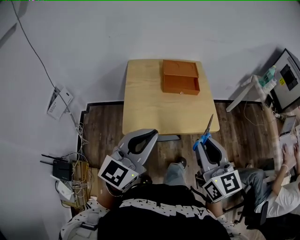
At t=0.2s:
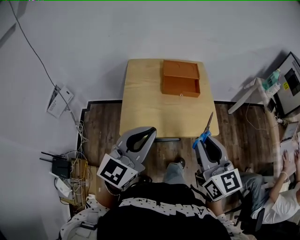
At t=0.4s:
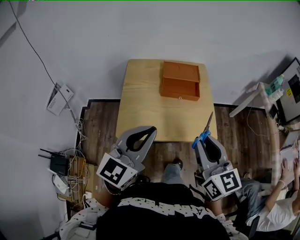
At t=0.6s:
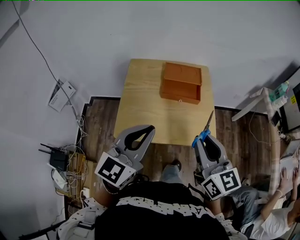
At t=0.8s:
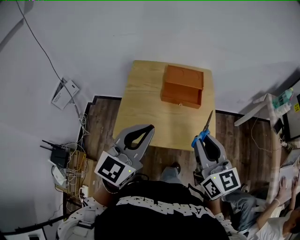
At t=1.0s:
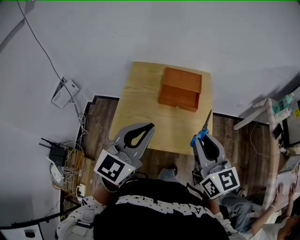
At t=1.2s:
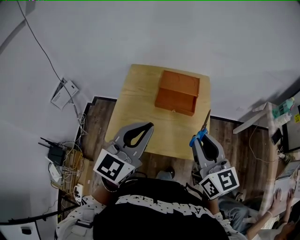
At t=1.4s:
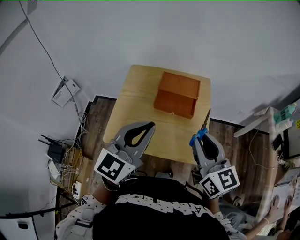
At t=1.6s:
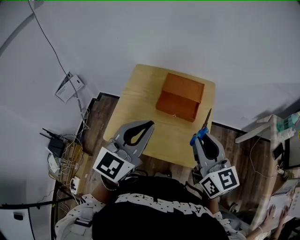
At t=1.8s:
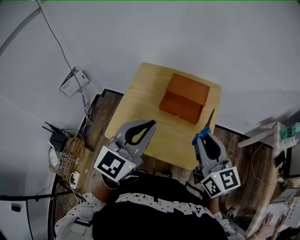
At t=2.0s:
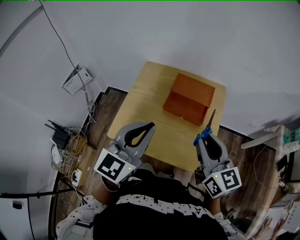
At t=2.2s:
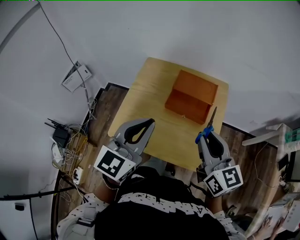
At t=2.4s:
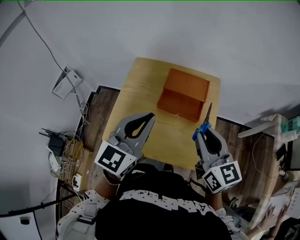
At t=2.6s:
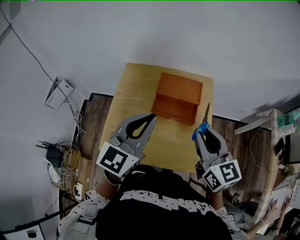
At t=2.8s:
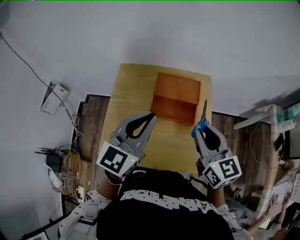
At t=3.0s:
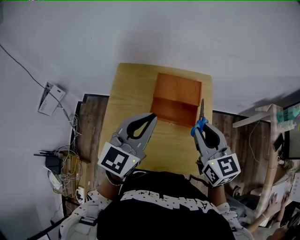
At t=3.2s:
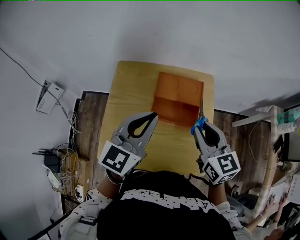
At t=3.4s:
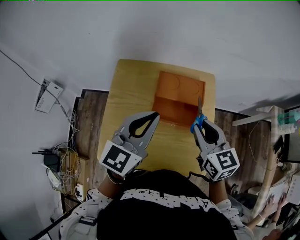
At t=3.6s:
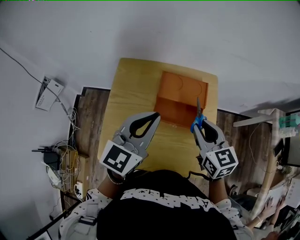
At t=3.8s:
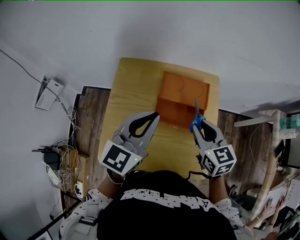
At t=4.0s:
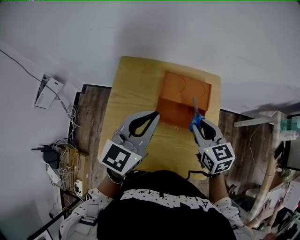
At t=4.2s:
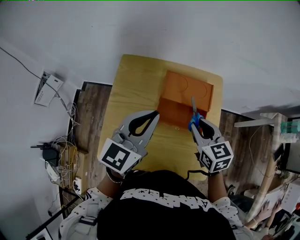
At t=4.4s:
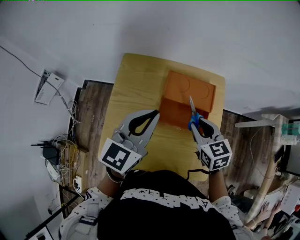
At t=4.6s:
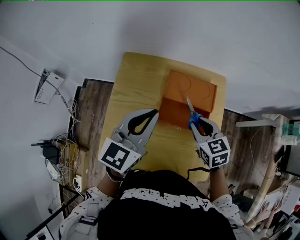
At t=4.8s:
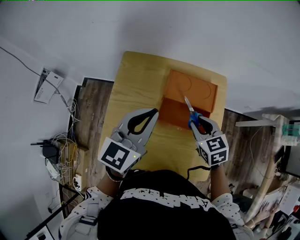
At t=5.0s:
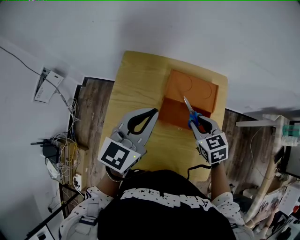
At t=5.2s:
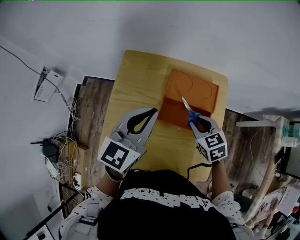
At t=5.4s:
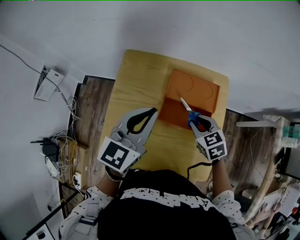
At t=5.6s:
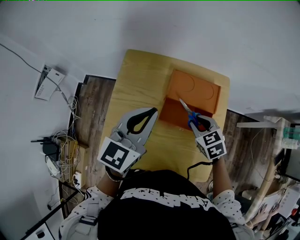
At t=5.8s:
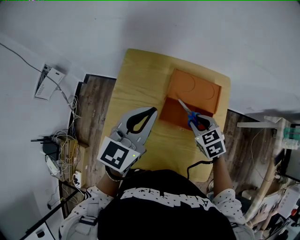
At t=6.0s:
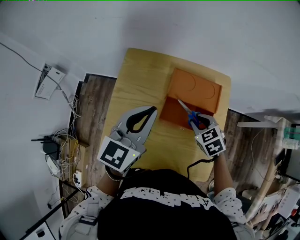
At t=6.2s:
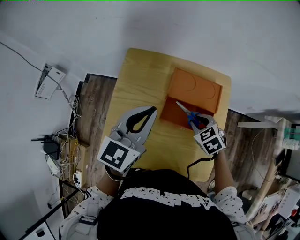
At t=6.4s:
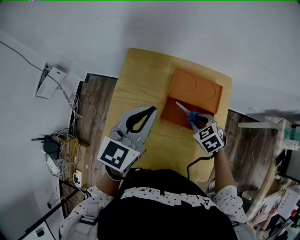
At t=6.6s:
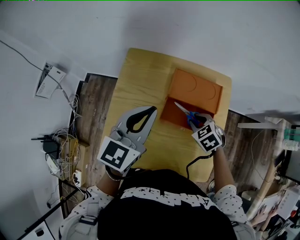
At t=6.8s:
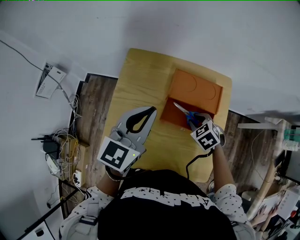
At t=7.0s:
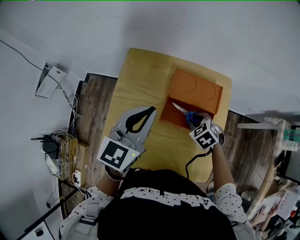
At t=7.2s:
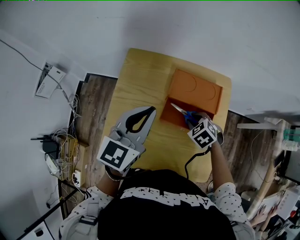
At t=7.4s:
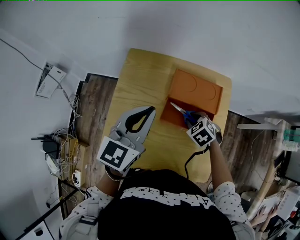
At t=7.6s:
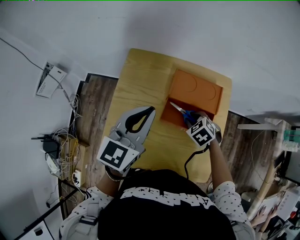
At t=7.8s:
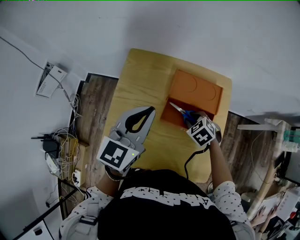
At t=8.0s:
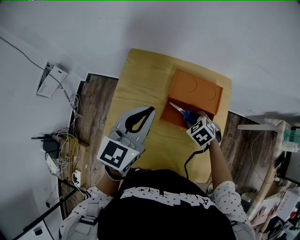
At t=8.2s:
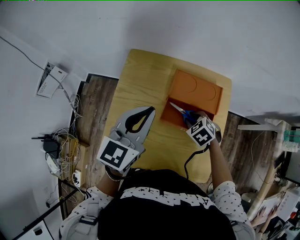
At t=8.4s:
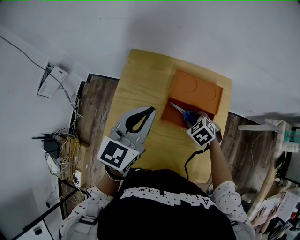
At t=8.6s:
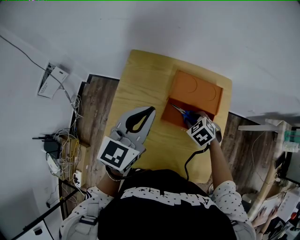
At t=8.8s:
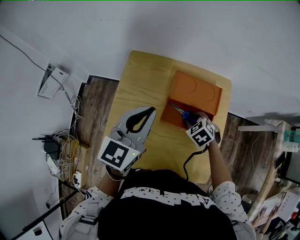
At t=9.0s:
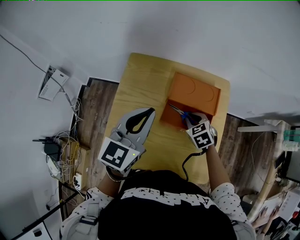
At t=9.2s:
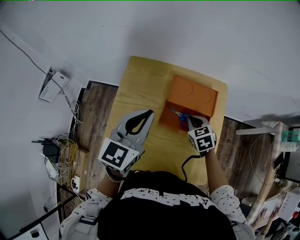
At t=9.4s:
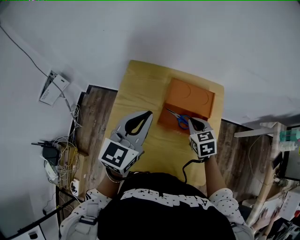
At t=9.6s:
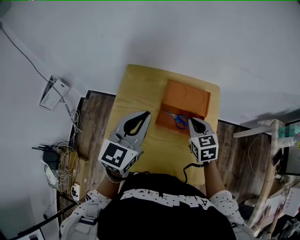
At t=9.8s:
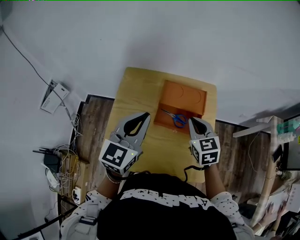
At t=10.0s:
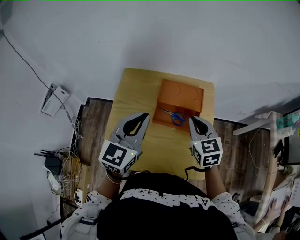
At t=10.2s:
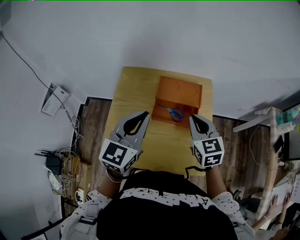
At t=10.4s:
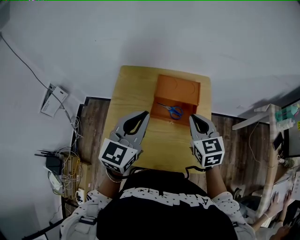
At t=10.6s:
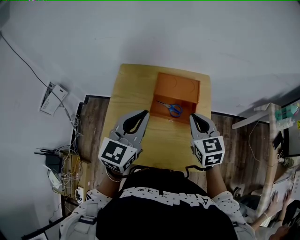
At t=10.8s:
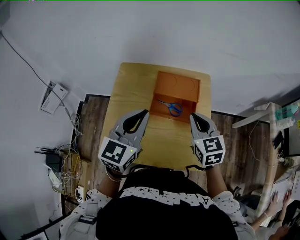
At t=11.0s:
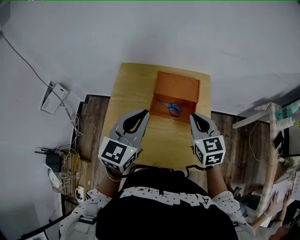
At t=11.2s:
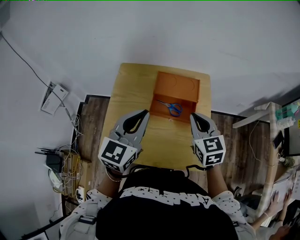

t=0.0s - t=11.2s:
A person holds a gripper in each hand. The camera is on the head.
t=0.0s - t=1.6s: Both grippers travel together forward and to the right, some 20 cm. The right gripper swivels roughly 20 degrees; the left gripper turns by approximately 20 degrees.
t=1.6s - t=3.2s: The left gripper goes some 15 cm forward. Meanwhile the right gripper moves forward and downward, some 15 cm.
t=3.2s - t=4.8s: The right gripper heads downward and forward, covering some 15 cm, and changes its angle by roughly 30 degrees; the left gripper goes about 5 cm forward.
t=4.8s - t=6.4s: The right gripper moves downward, roughly 10 cm, and rotates roughly 30 degrees.
t=6.4s - t=8.0s: There are only small adjustments of the grippers.
t=8.0s - t=9.6s: The right gripper heads upward, covering roughly 10 cm, points its fingers some 30 degrees further upward, and closes up.
t=9.6s - t=11.2s: The right gripper shifts about 10 cm upward and backward, while the left gripper goes approximately 5 cm backward.

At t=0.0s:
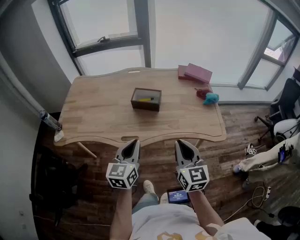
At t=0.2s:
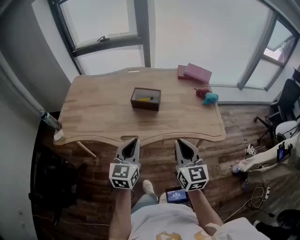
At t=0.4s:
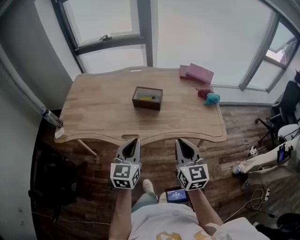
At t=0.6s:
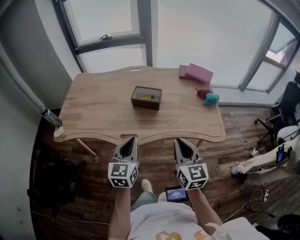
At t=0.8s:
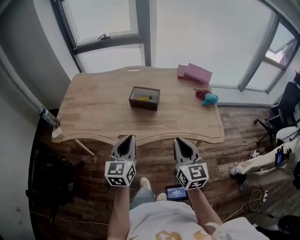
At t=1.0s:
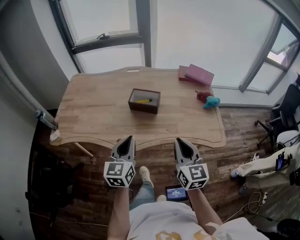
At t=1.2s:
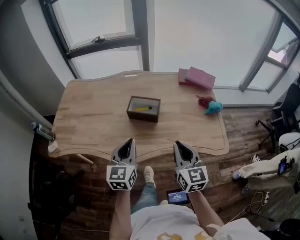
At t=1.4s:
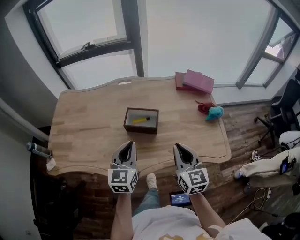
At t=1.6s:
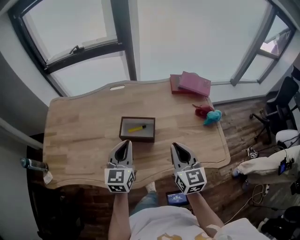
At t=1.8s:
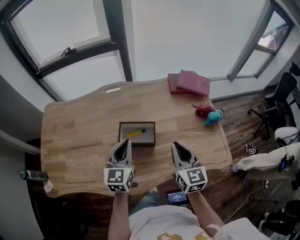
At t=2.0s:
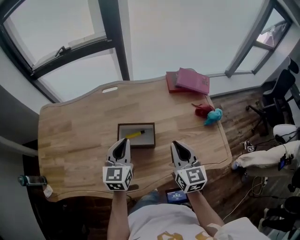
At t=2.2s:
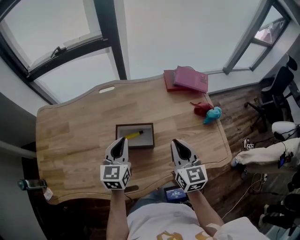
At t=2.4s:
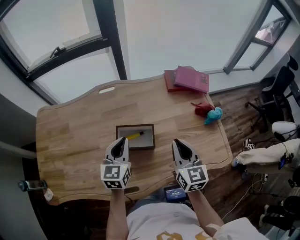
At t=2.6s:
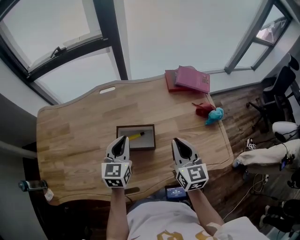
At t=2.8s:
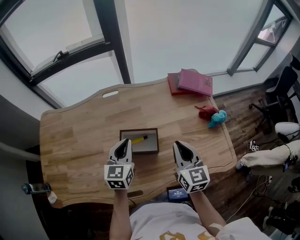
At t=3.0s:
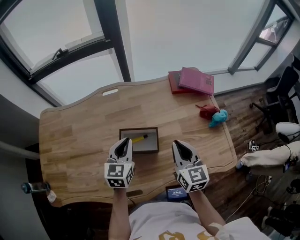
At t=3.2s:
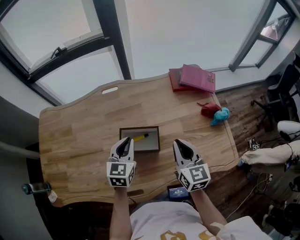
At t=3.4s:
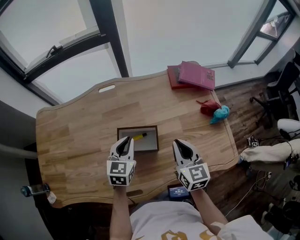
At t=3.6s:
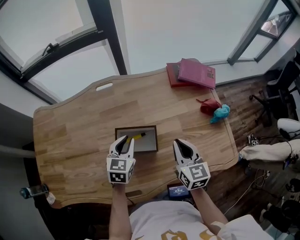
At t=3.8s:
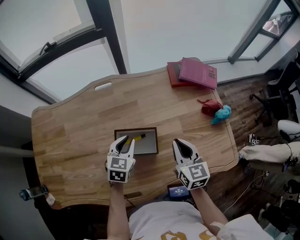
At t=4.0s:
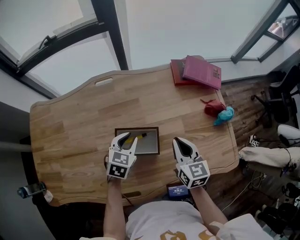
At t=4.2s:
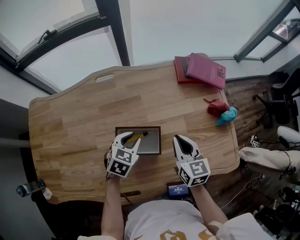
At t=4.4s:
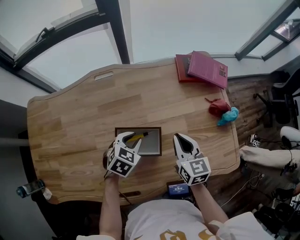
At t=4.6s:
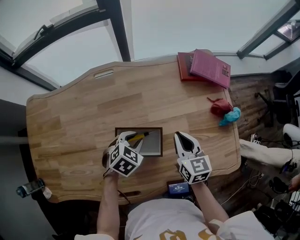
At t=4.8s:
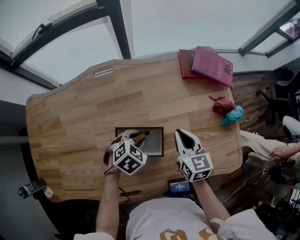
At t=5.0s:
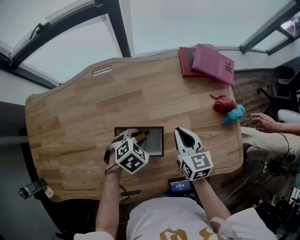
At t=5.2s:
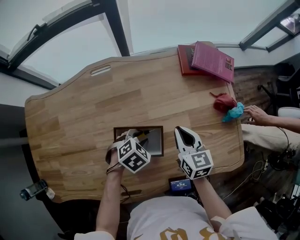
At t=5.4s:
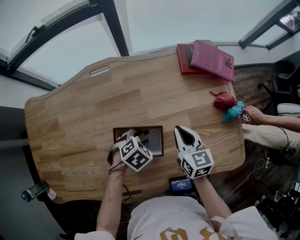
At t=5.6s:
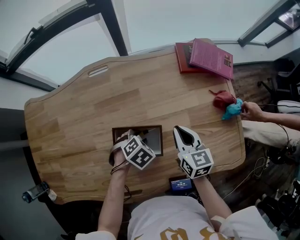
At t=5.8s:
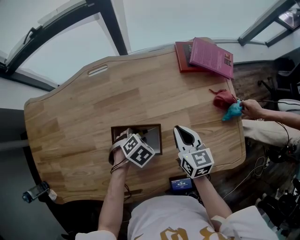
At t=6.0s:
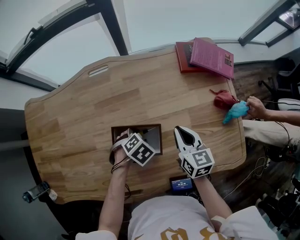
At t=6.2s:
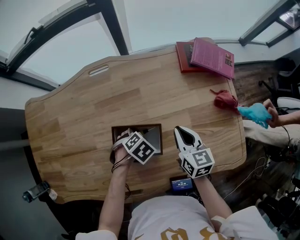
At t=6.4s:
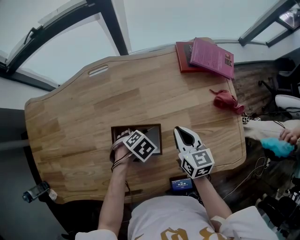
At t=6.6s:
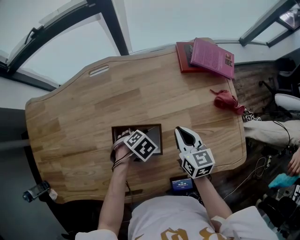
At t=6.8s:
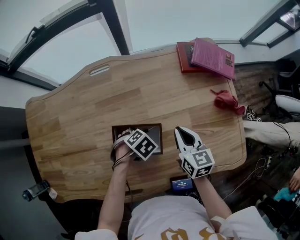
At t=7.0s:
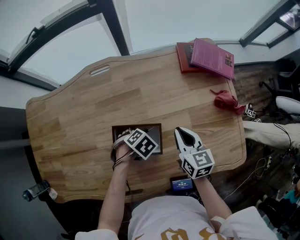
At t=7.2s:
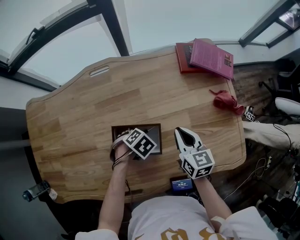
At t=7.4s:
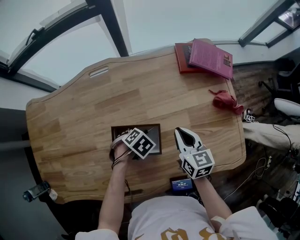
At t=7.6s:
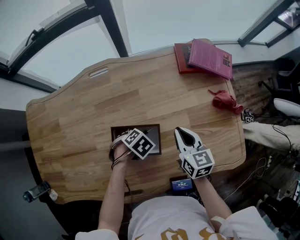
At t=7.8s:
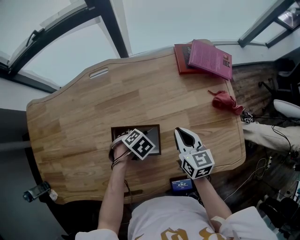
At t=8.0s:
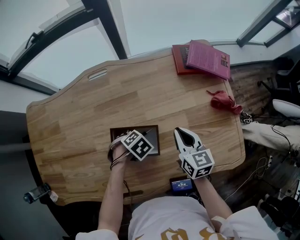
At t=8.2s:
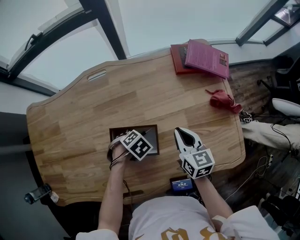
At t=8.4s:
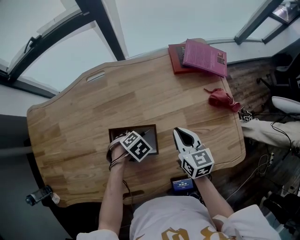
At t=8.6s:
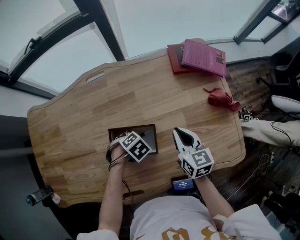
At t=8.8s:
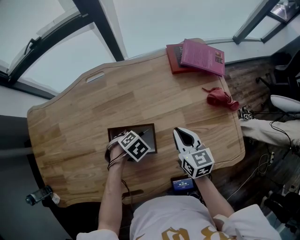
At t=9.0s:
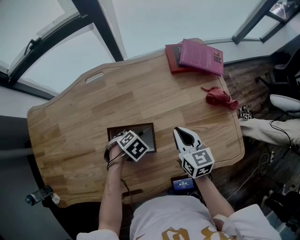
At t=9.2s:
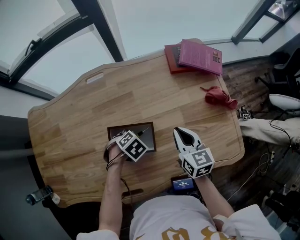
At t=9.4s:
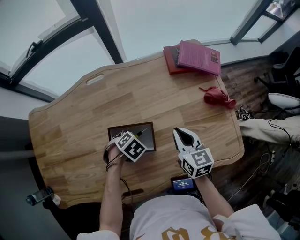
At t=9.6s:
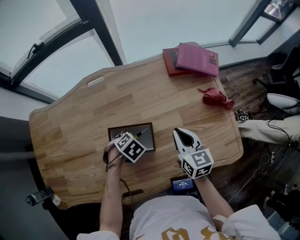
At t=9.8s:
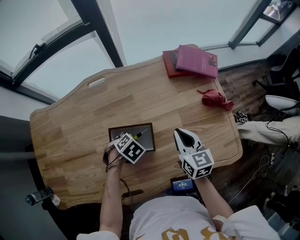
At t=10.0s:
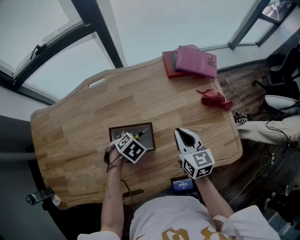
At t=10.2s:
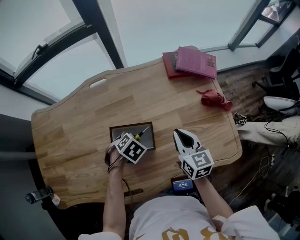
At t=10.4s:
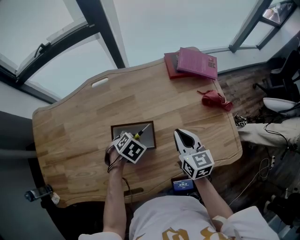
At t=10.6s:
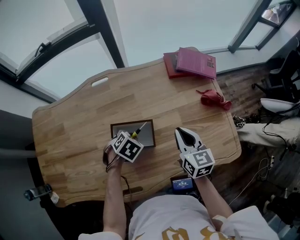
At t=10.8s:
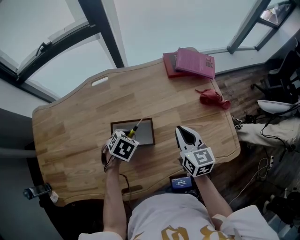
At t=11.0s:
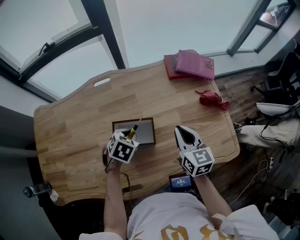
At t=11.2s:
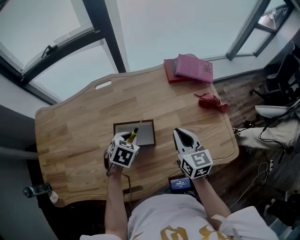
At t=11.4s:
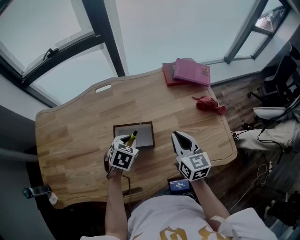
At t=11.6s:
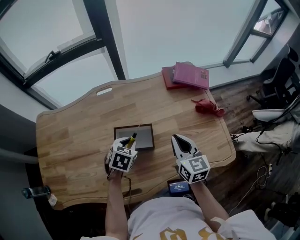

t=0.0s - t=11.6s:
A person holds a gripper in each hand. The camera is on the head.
t=0.0s - t=1.4s: The grippers both shift forward by some 20 cm.
t=1.4s - t=2.8s: The two grippers go roughly 15 cm forward.
t=2.8s - t=4.4s: The right gripper moves downward and forward, approximately 15 cm; the left gripper heads downward, covering about 15 cm, tilts its fingers roughly 30 degrees downward, and opens up.
t=4.4s - t=5.8s: The left gripper goes approximately 5 cm downward, and swivels roughly 30 degrees.
t=5.8s - t=8.8s: The grippers stay close to where they were, moving slightly.
t=8.8s - t=10.2s: The left gripper changes place by approximately 5 cm.
t=10.2s - t=11.6s: The grippers both shift upward by about 5 cm. The left gripper changes its angle by approximately 30 degrees.

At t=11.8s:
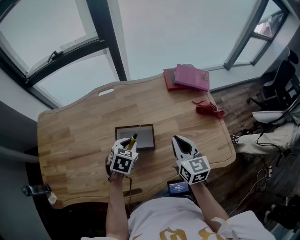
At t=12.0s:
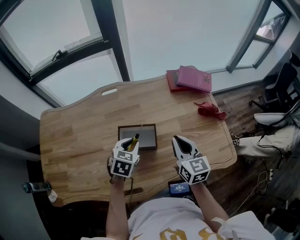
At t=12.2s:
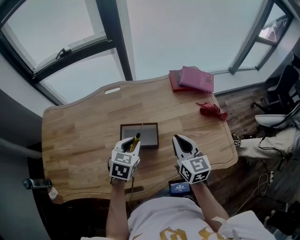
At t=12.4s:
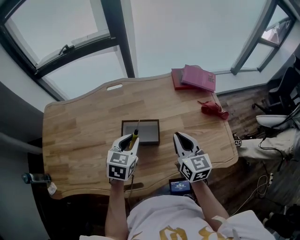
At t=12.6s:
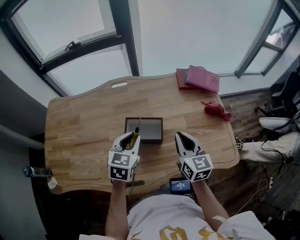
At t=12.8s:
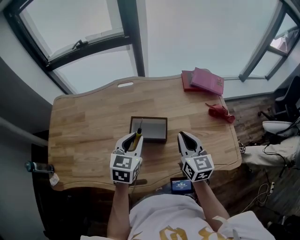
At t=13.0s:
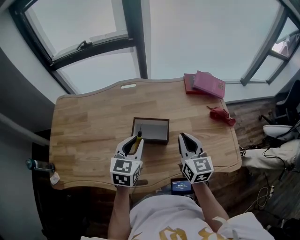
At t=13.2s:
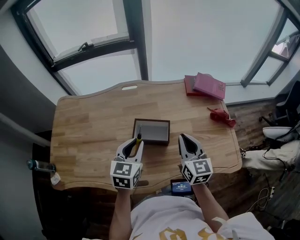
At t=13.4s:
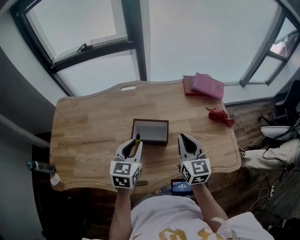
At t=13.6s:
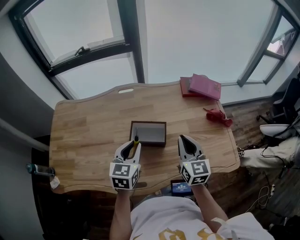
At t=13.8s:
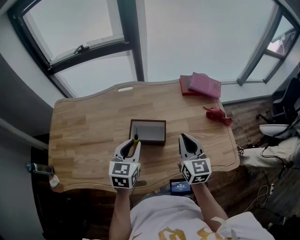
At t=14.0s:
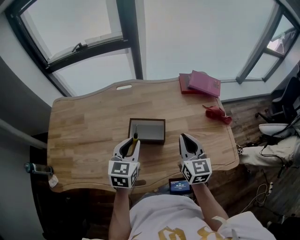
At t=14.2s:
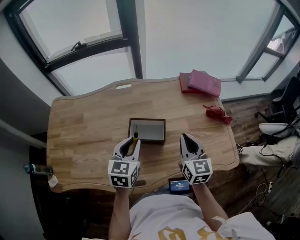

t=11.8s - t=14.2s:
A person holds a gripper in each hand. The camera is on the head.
t=11.8s - t=13.0s: The left gripper moves upward and backward, about 15 cm, and swivels some 30 degrees. Meanwhile the right gripper ends up approximately 5 cm from where it was.
t=13.0s - t=14.2s: The grippers move only a little.
